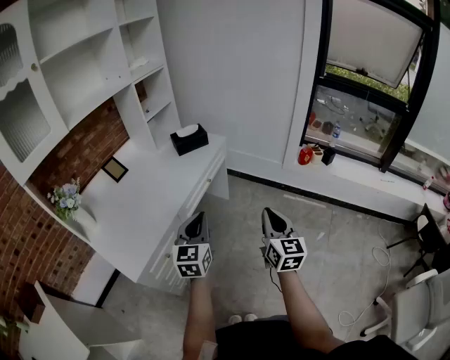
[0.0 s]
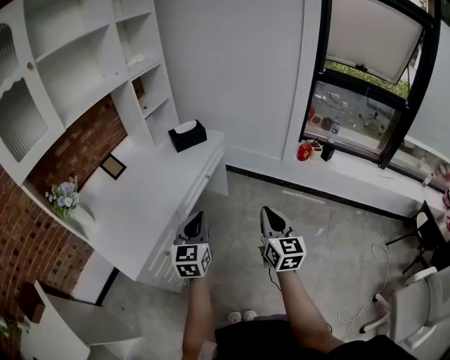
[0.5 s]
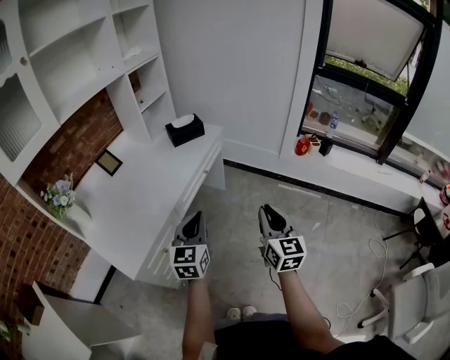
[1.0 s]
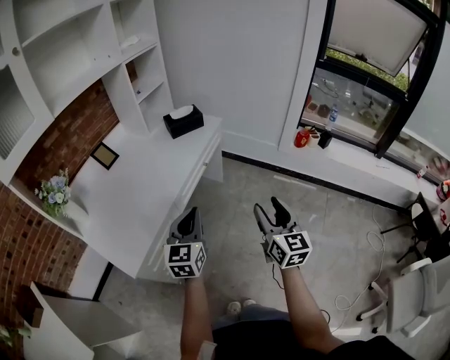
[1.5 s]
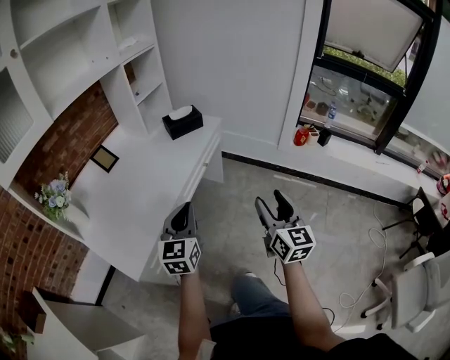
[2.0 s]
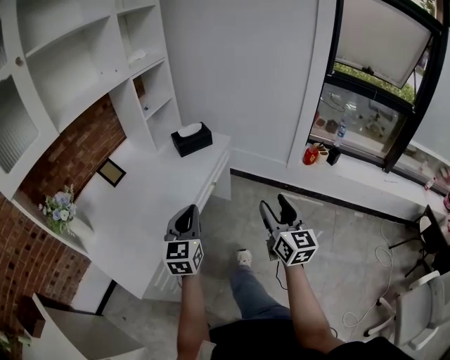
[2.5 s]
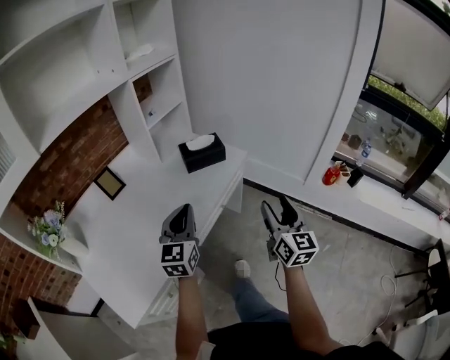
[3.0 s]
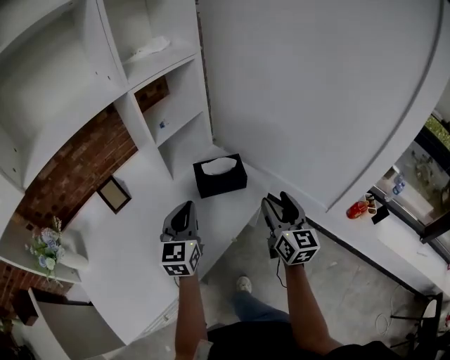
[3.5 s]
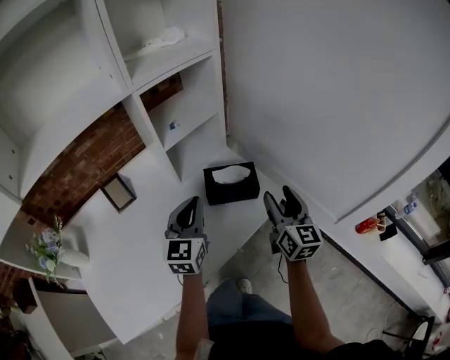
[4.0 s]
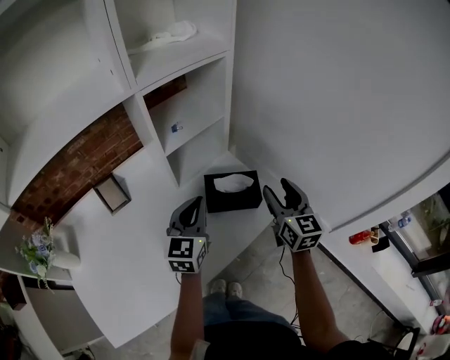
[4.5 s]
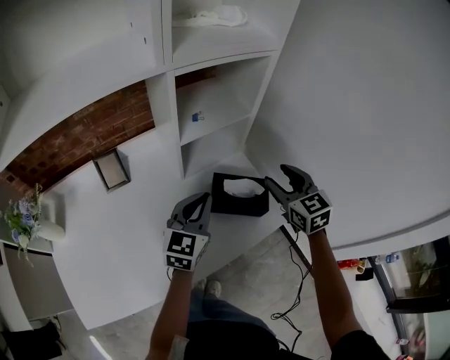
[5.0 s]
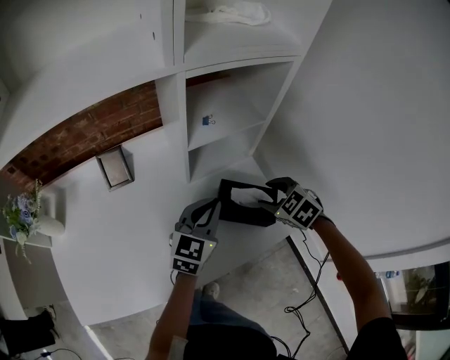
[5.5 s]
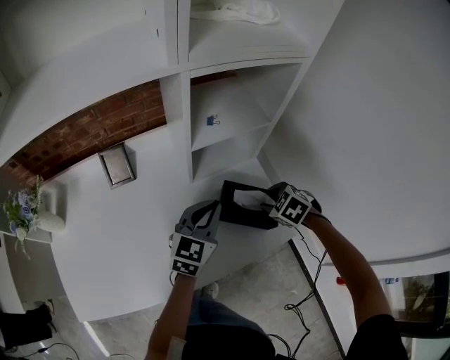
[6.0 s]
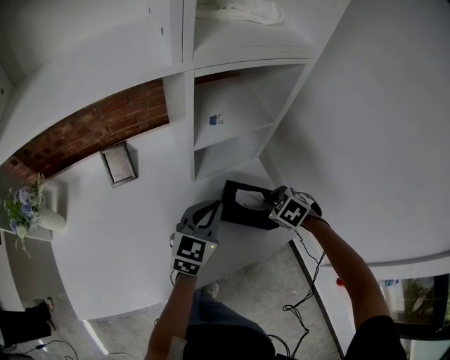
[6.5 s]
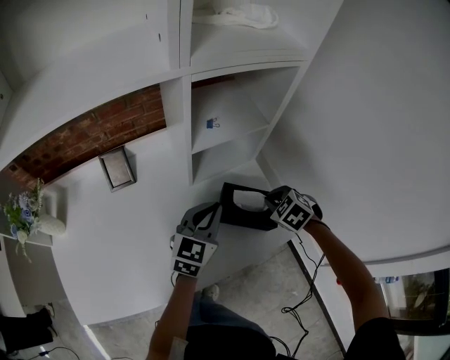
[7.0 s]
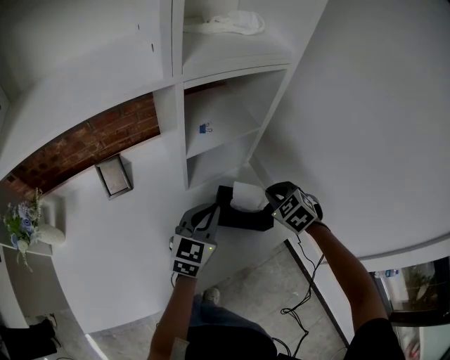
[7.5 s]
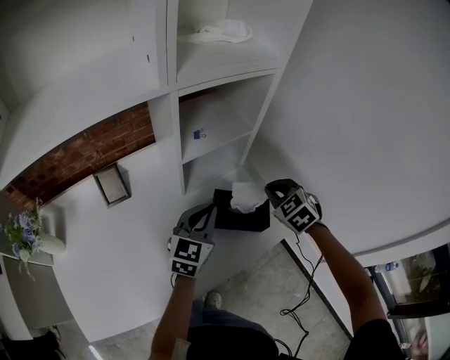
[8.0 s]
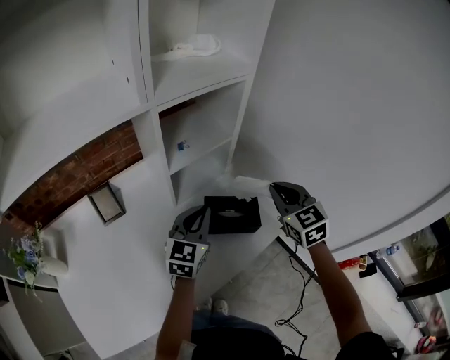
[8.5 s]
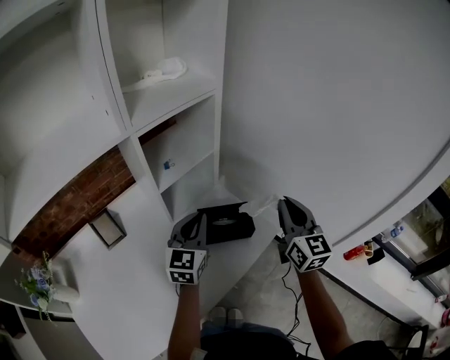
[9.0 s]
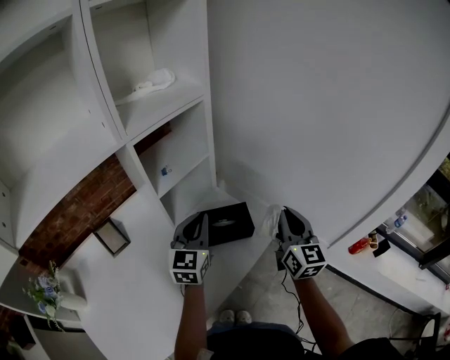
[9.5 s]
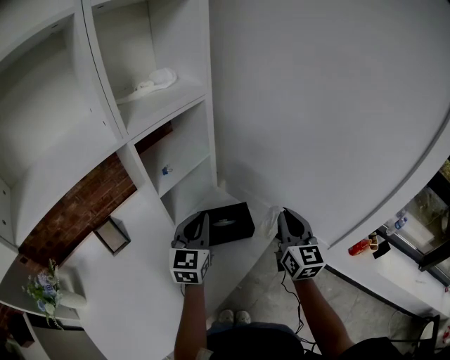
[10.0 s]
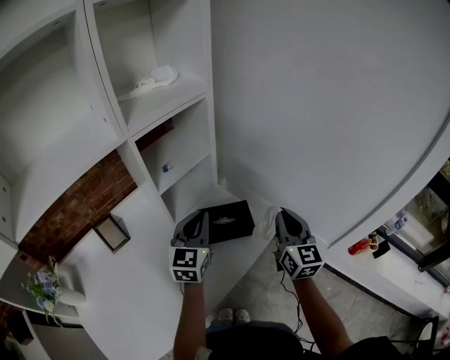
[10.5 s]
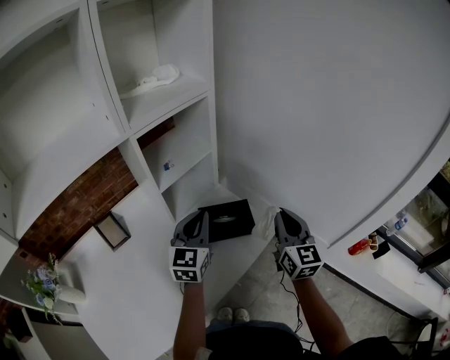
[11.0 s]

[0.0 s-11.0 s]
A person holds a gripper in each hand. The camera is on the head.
0.0 to 2.0 s: The left gripper moves to the left, roughly 5 cm, while the right gripper opens.
2.0 to 3.5 s: The pair of grippers is taken forward, approximately 50 cm.
3.5 to 5.5 s: The left gripper moves roughly 15 cm, while the right gripper moves some 30 cm, and tilts its fingers some 50 degrees downward.
5.5 to 7.5 s: The right gripper closes.
7.5 to 9.0 s: The right gripper travels upward, backward and to the right by roughly 20 cm, and tilts its fingers roughly 50 degrees upward. The left gripper is displaced upward by roughly 5 cm.
9.0 to 11.0 s: The right gripper ends up approximately 5 cm from where it was.

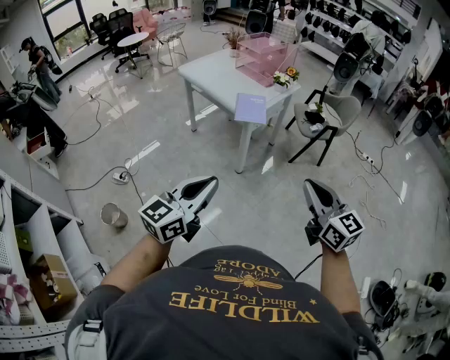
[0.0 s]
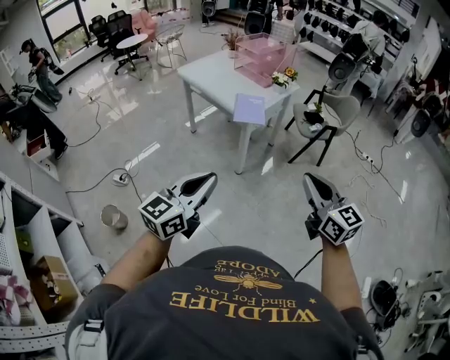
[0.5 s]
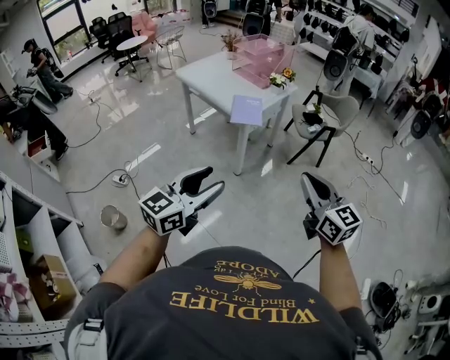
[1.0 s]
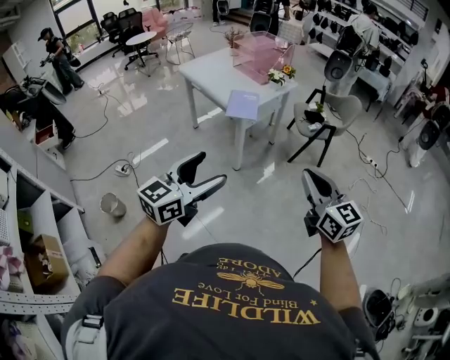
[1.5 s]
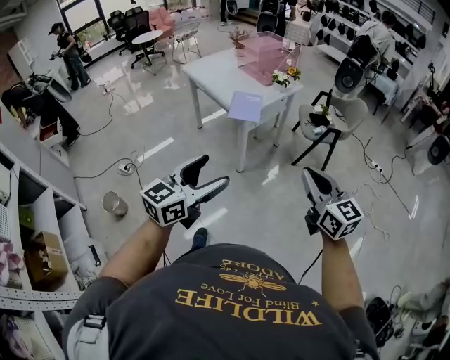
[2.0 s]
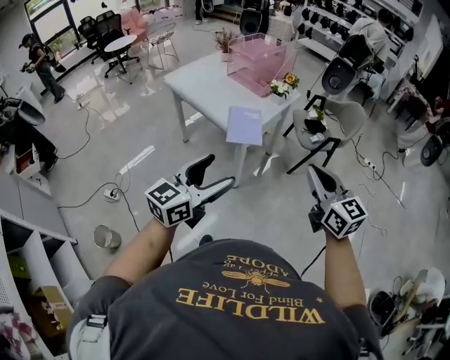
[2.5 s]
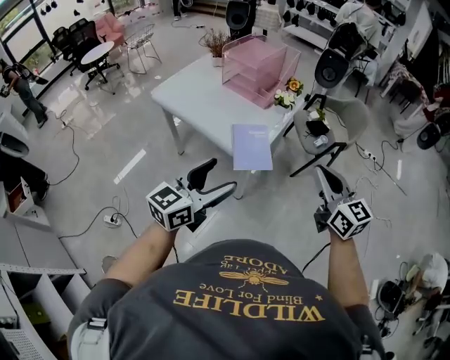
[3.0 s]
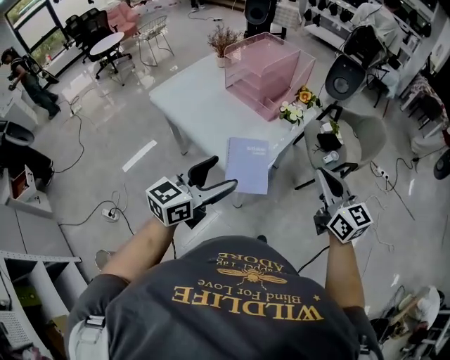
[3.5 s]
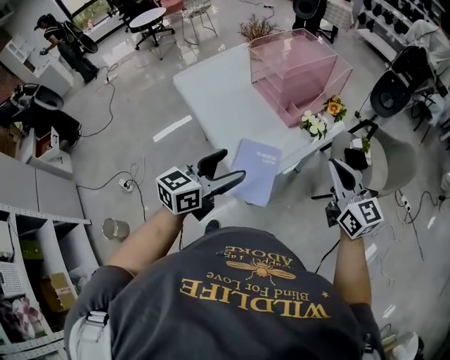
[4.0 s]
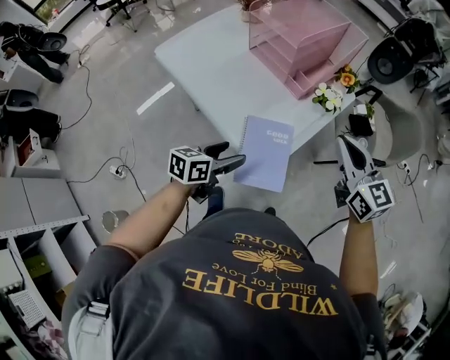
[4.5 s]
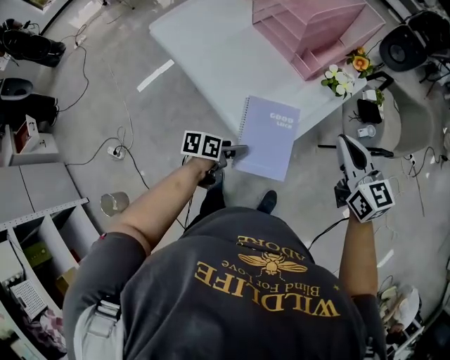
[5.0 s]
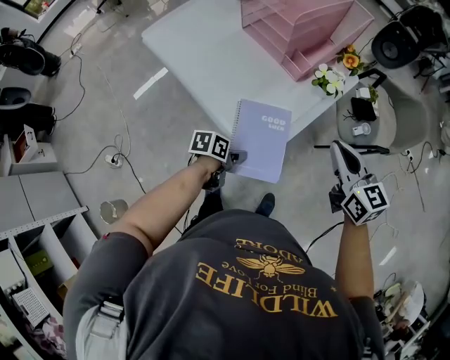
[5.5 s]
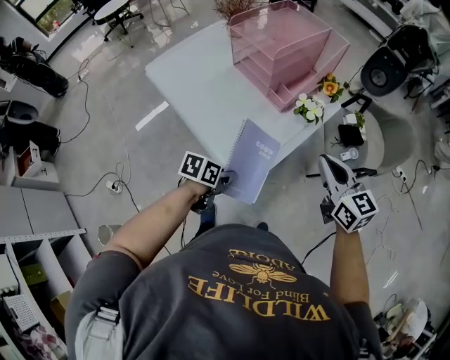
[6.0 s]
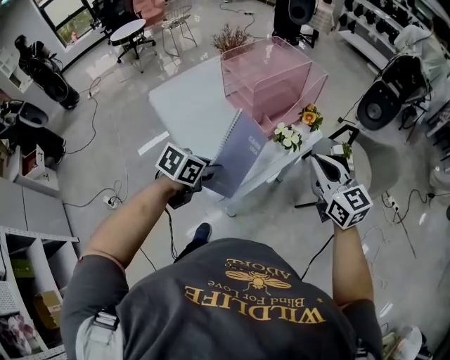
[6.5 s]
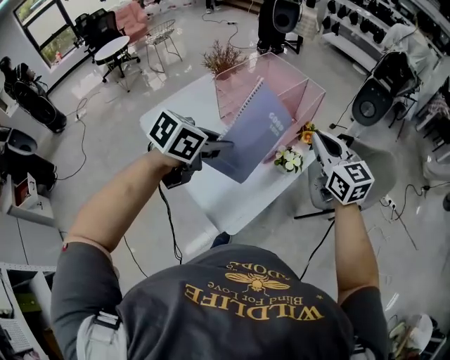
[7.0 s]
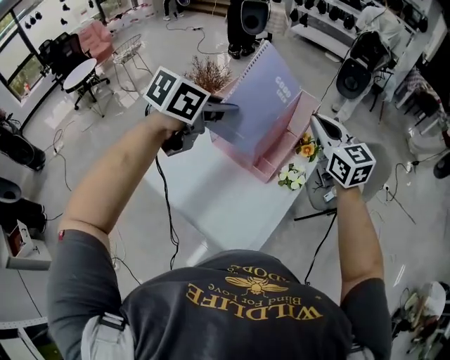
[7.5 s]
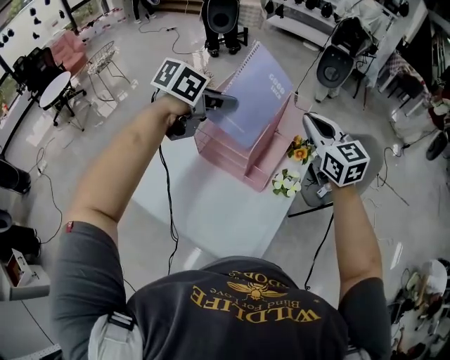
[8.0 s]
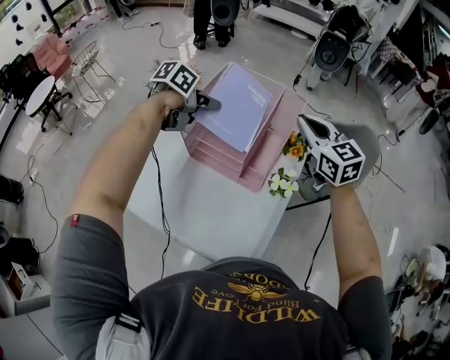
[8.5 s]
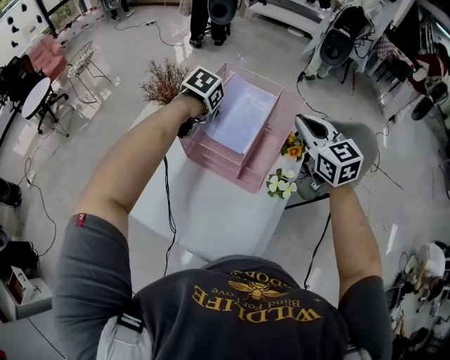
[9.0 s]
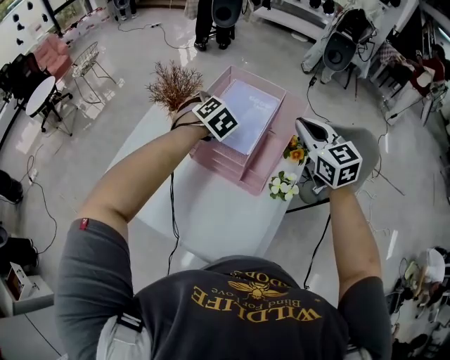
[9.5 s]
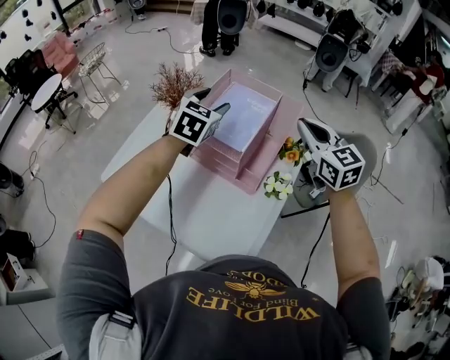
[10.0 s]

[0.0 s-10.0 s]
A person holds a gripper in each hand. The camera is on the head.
0.0 to 2.0 s: Both grippers move to the right, about 10 cm. The left gripper opens its fingers.
2.0 to 4.0 s: The pair of grippers is taken forward, about 60 cm.
4.0 to 6.0 s: The right gripper heads downward, covering roughly 5 cm. The left gripper shifts approximately 25 cm downward, angles its fingers downward, by approximately 40 degrees, and closes up.
6.0 to 8.0 s: The right gripper shifts by roughly 35 cm, and swivels approximately 20 degrees. Meanwhile the left gripper changes place by roughly 60 cm, and changes its angle by some 40 degrees.
8.0 to 10.0 s: The left gripper goes downward and returns, about 15 cm each way, swivels about 50 degrees, and opens its fingers.

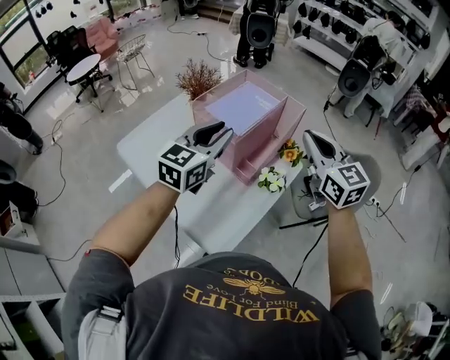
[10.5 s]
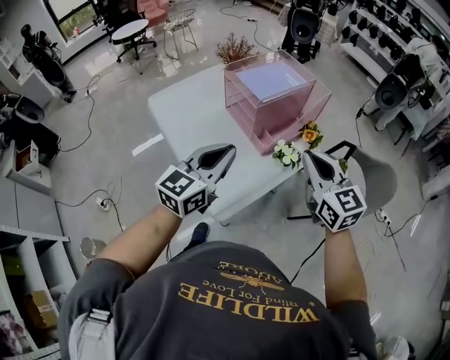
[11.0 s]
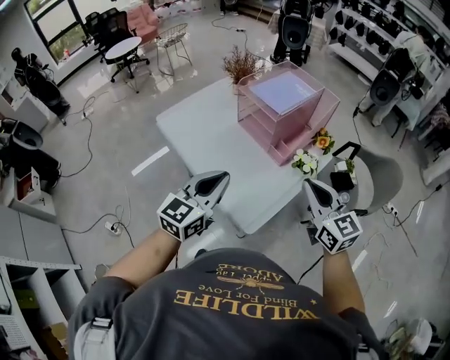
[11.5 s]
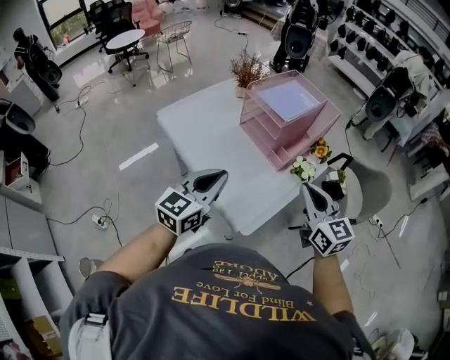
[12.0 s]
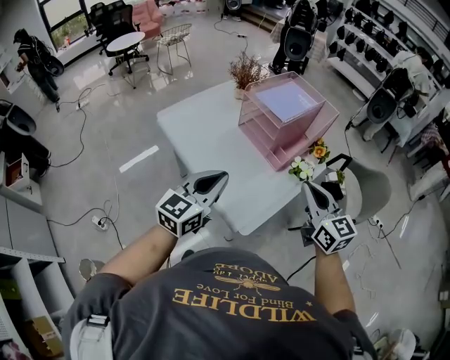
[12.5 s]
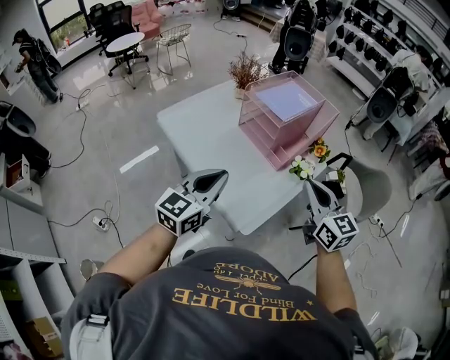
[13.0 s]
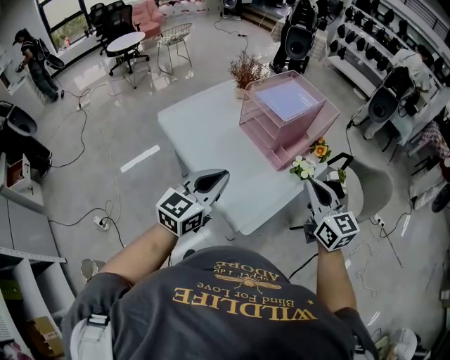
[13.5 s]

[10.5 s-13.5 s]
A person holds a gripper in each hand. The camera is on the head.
10.5 to 12.0 s: The right gripper moves backward, to the left and downward, roughly 25 cm, while the left gripper goes about 25 cm backward and to the left.
12.0 to 13.5 s: The grippers move only a little.

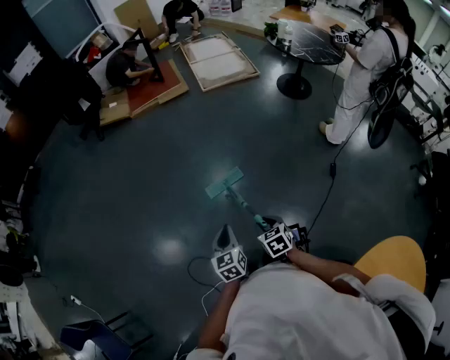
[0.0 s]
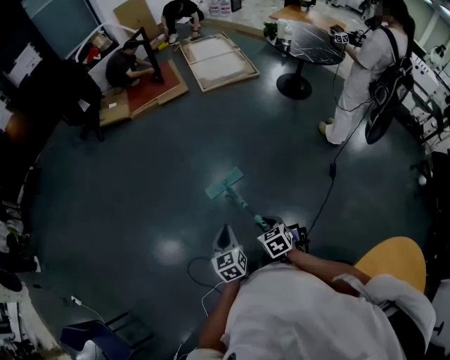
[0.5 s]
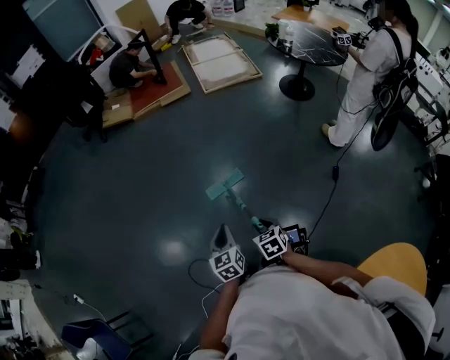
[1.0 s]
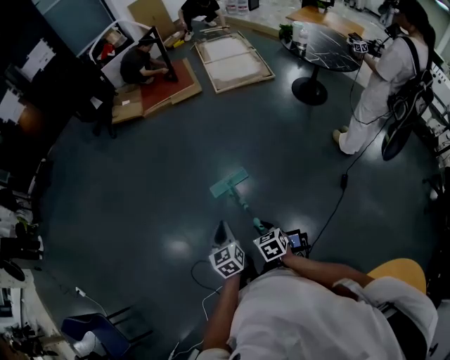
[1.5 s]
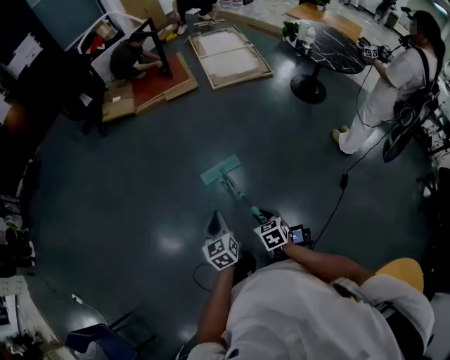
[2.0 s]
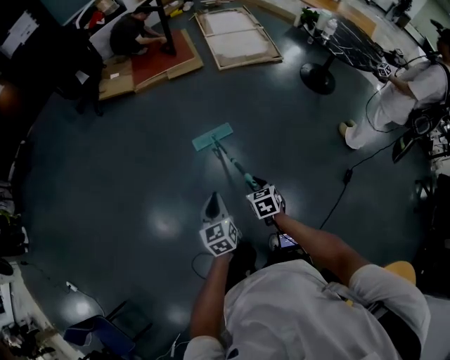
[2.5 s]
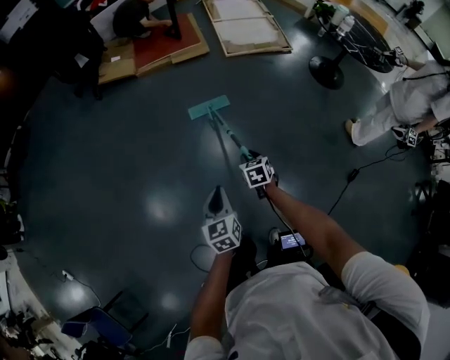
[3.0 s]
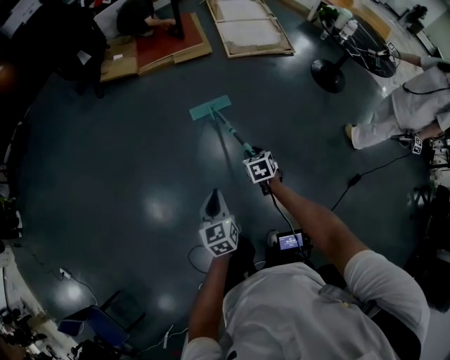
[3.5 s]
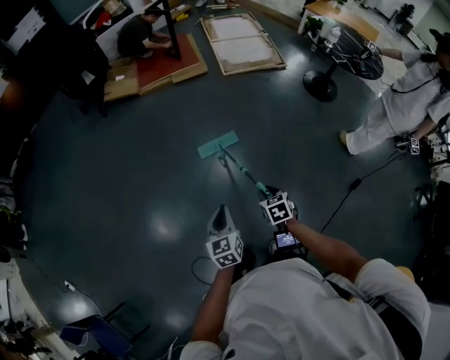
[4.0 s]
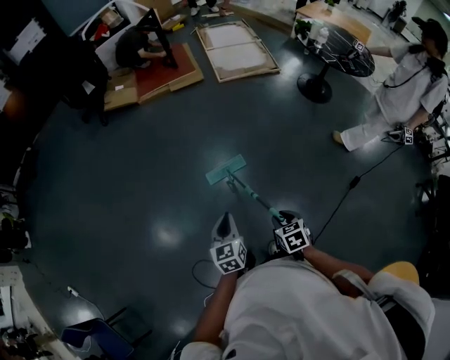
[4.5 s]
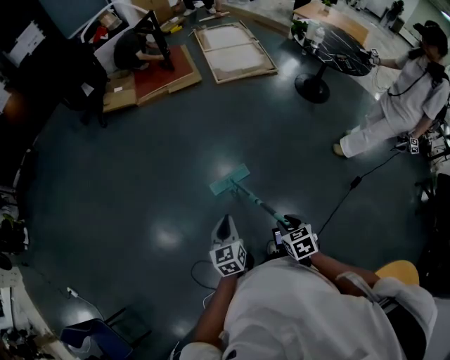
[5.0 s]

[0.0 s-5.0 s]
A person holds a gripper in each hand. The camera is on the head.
0.0 to 2.5 s: Both grippers move forward, roughly 30 cm.
2.5 to 5.0 s: The right gripper is displaced backward and to the right by approximately 20 cm. Meanwhile the left gripper heads backward and to the right, covering about 10 cm.
